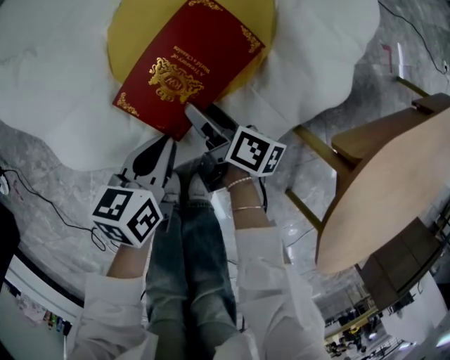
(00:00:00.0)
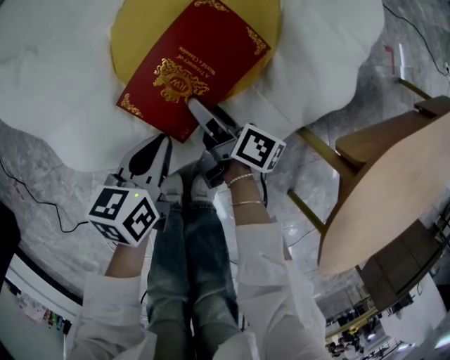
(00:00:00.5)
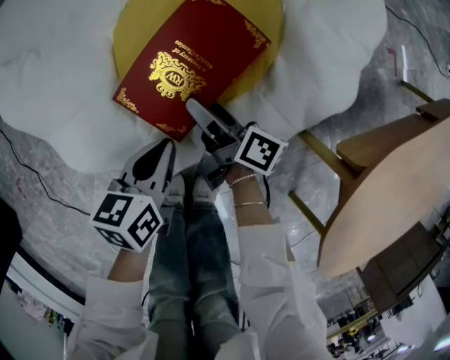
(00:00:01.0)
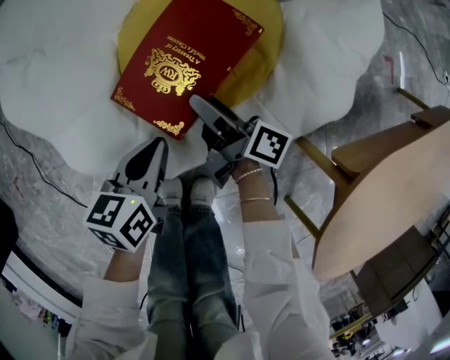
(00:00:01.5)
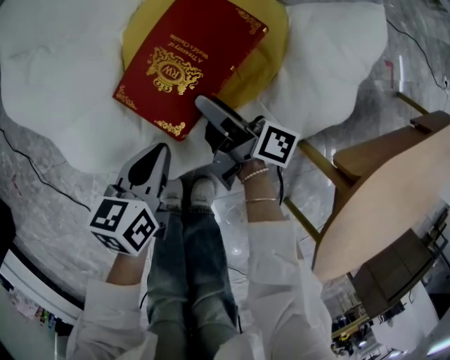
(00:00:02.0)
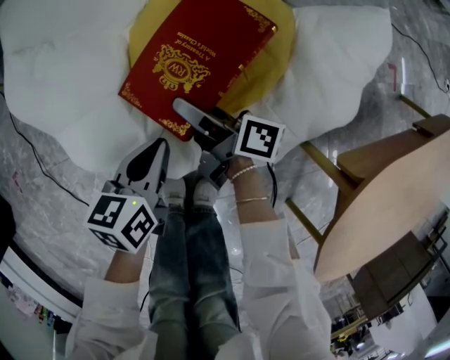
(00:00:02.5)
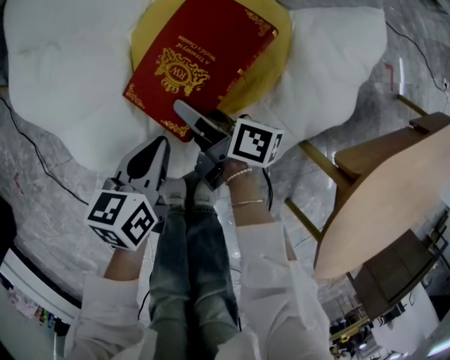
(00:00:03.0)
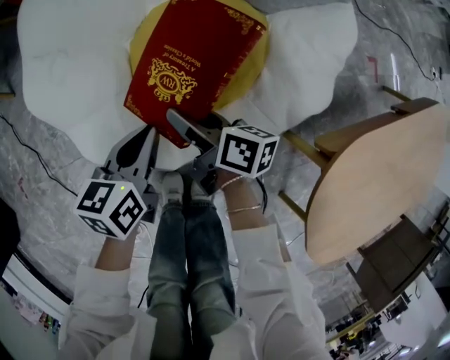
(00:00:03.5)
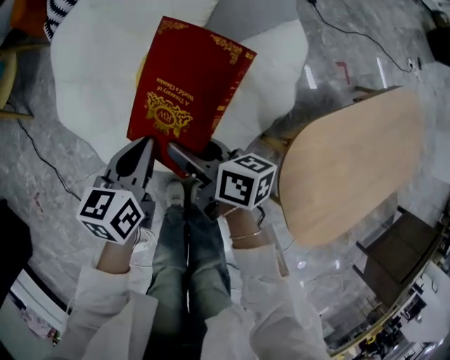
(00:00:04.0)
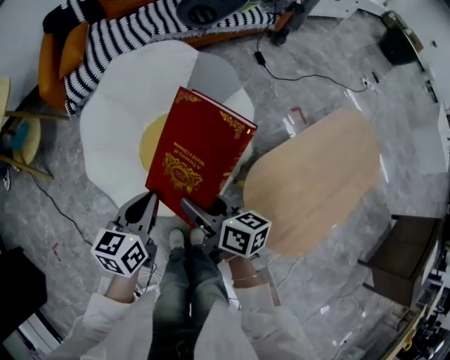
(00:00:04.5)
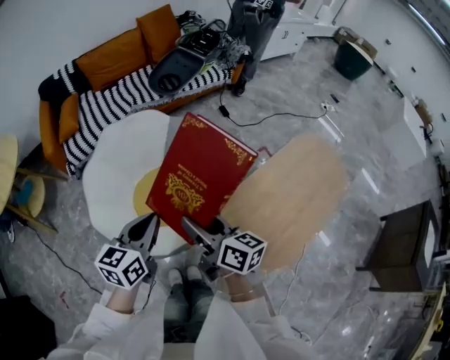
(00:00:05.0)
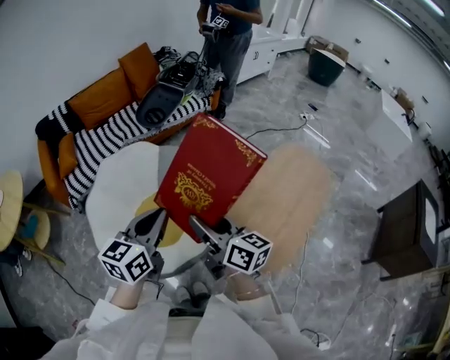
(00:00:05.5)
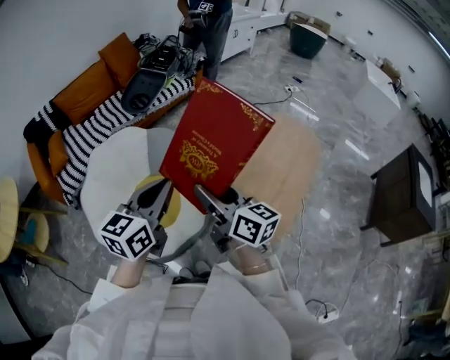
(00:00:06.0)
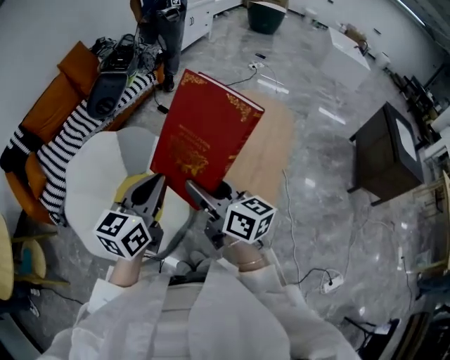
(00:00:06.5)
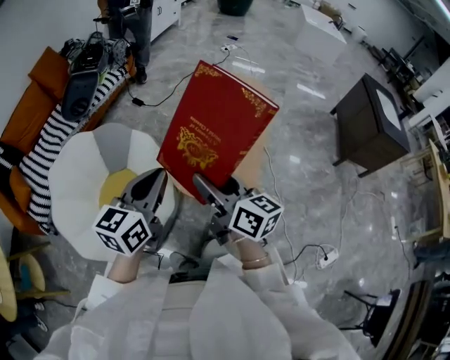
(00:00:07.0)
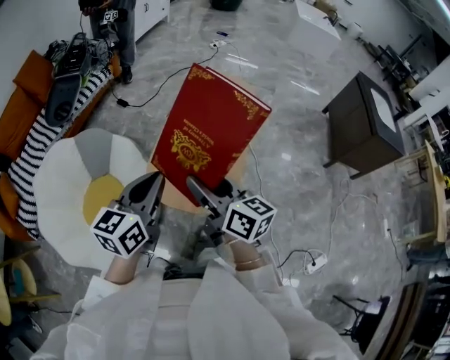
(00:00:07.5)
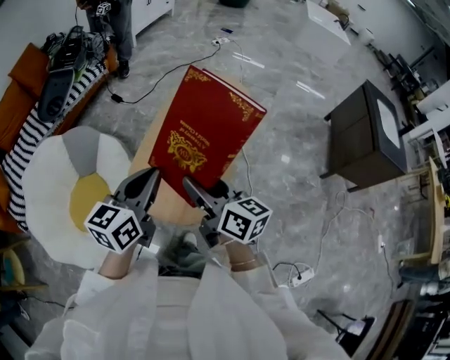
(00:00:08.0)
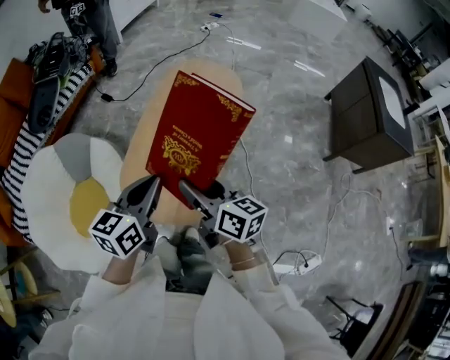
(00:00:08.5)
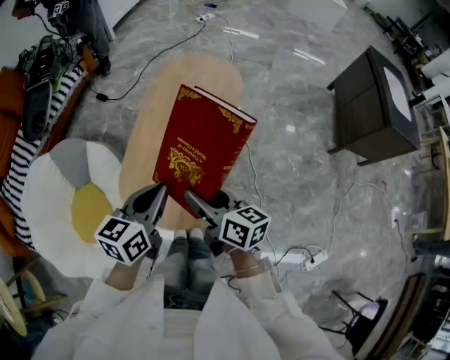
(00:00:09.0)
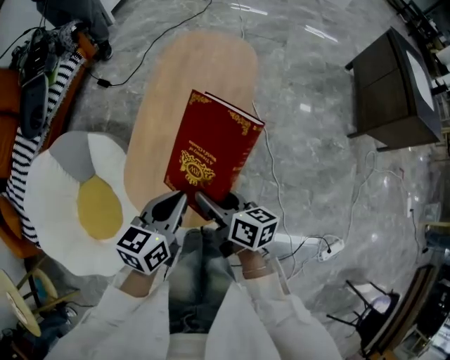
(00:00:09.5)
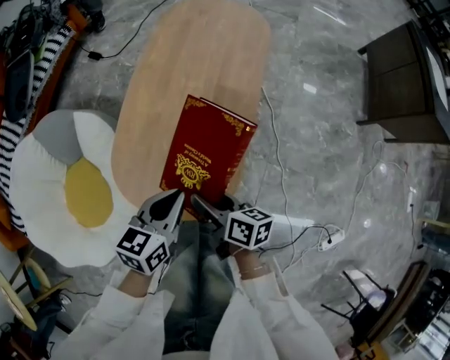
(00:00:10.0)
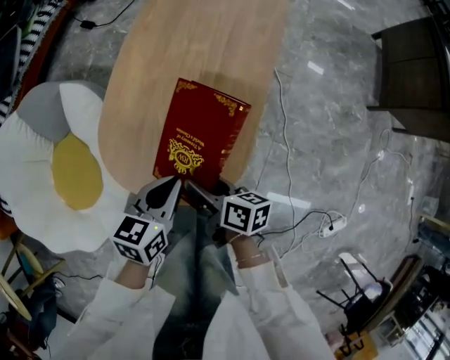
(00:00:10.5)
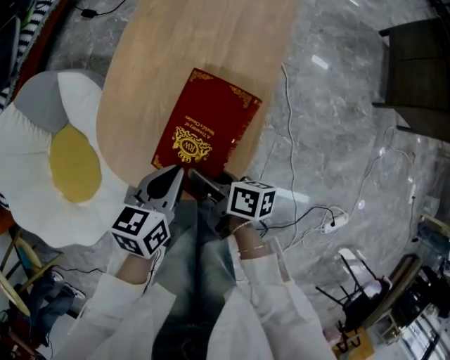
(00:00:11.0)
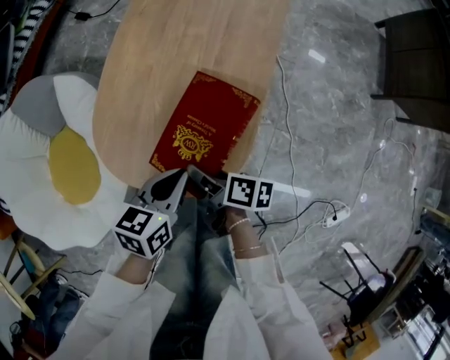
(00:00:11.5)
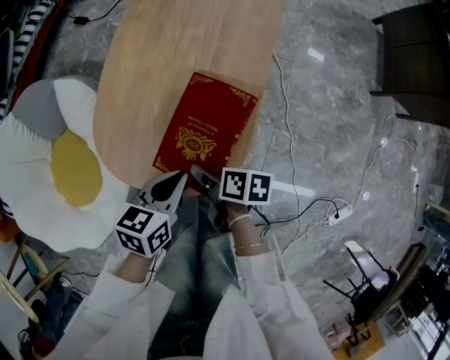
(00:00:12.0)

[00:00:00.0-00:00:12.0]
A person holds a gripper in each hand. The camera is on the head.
00:00:00.0 to 00:00:02.0: The right gripper is displaced upward and forward by roughly 10 cm, and changes its angle by about 20 degrees.
00:00:02.0 to 00:00:04.0: Both grippers travel together upward, about 20 cm. The right gripper turns by about 30 degrees.
00:00:04.0 to 00:00:06.0: Both grippers travel together upward, some 50 cm. The left gripper turns by roughly 50 degrees, while the right gripper turns by roughly 50 degrees.
00:00:06.0 to 00:00:08.0: Both grippers move to the right, roughly 35 cm.
00:00:08.0 to 00:00:10.0: Both grippers travel together downward, about 30 cm. The right gripper changes its angle by roughly 30 degrees, while the left gripper rotates some 30 degrees.
00:00:10.0 to 00:00:12.0: The grippers both shift downward by about 15 cm. The right gripper changes its angle by approximately 30 degrees.

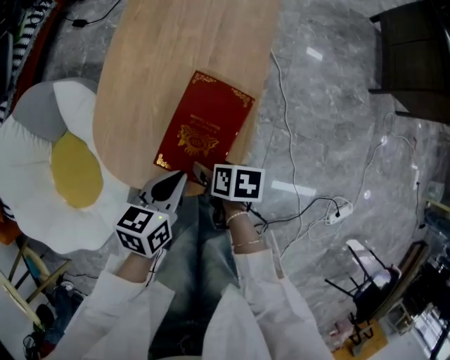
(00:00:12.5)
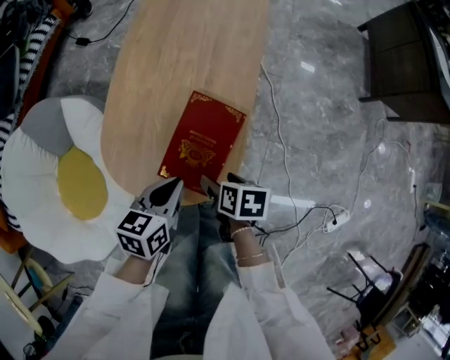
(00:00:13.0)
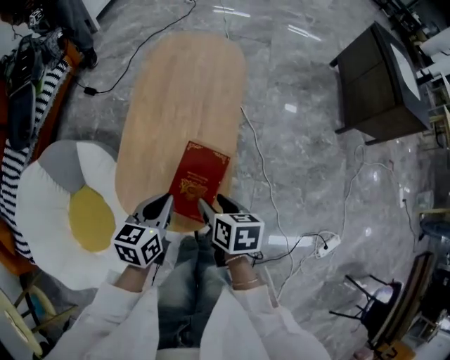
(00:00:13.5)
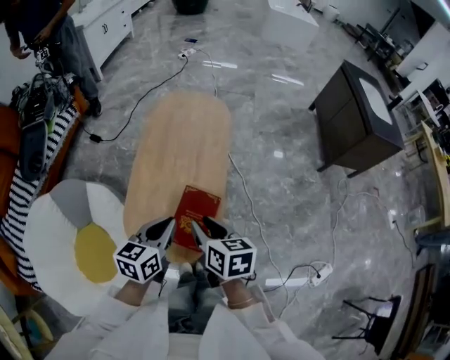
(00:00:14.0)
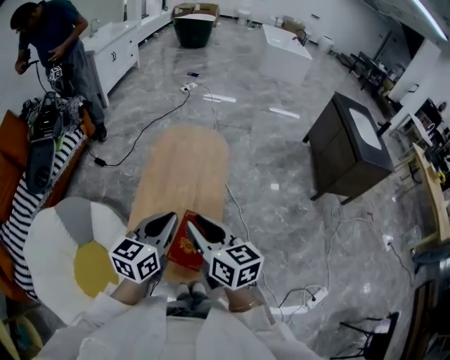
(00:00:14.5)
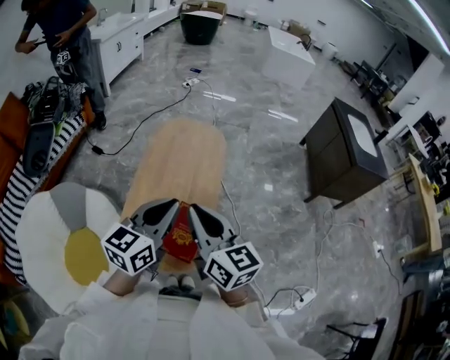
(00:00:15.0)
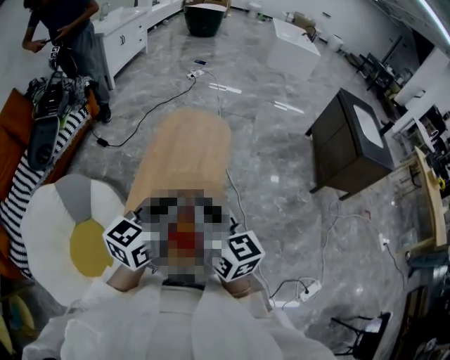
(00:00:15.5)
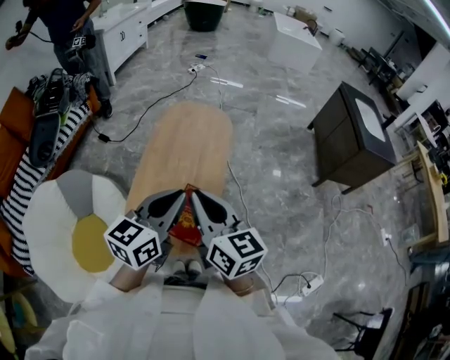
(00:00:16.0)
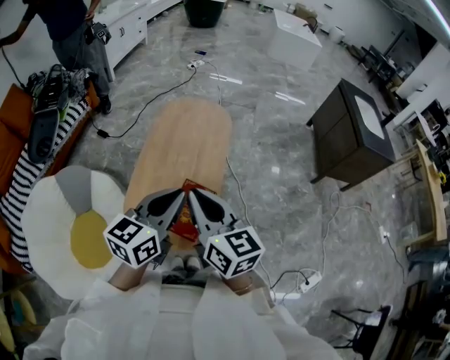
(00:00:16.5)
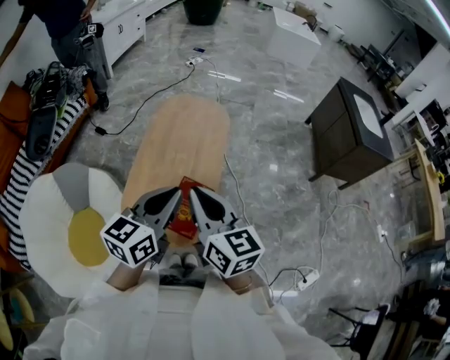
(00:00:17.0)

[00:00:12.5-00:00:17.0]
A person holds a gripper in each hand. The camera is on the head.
00:00:12.5 to 00:00:14.5: The two grippers go roughly 50 cm upward. The left gripper rotates approximately 30 degrees; the right gripper points its fingers about 40 degrees further upward, and closes up.
00:00:14.5 to 00:00:17.0: Both grippers move backward, some 5 cm.

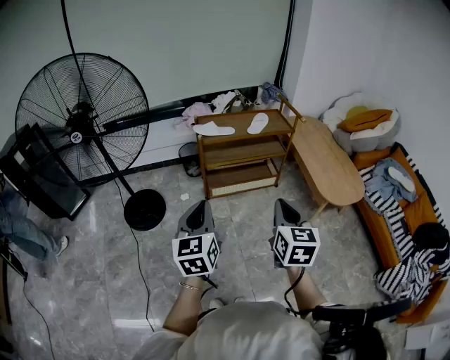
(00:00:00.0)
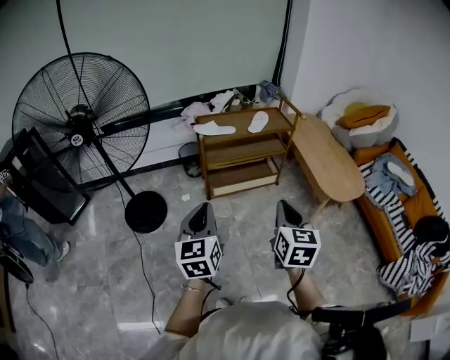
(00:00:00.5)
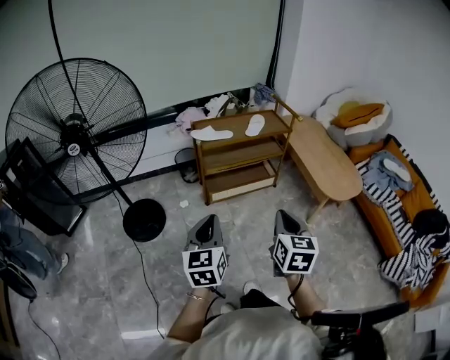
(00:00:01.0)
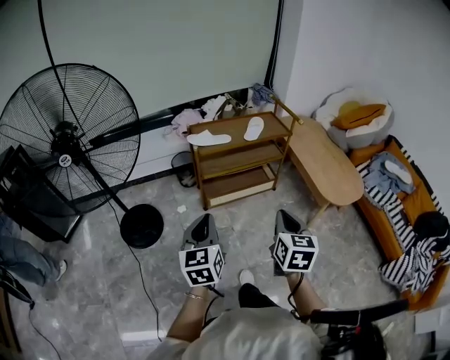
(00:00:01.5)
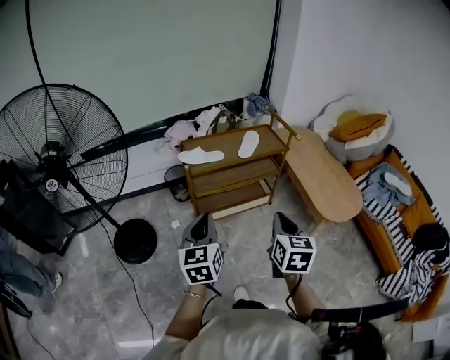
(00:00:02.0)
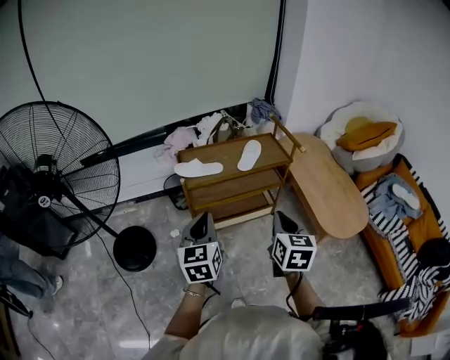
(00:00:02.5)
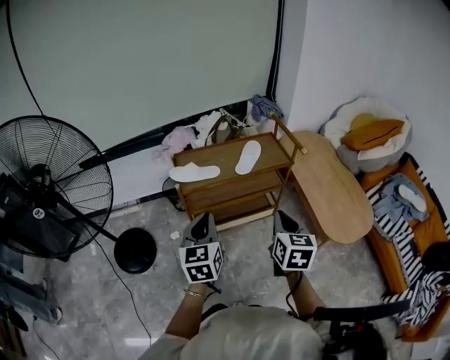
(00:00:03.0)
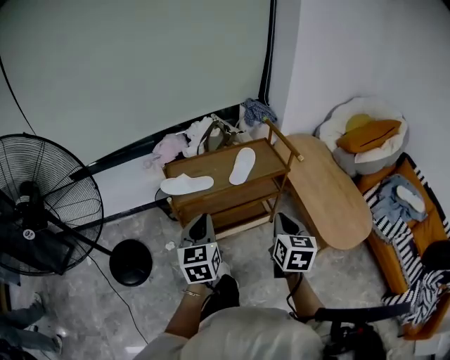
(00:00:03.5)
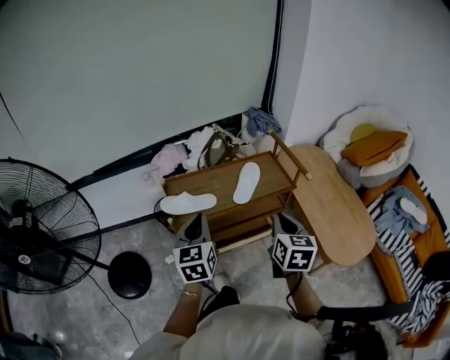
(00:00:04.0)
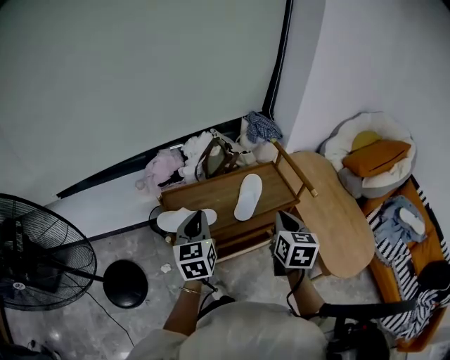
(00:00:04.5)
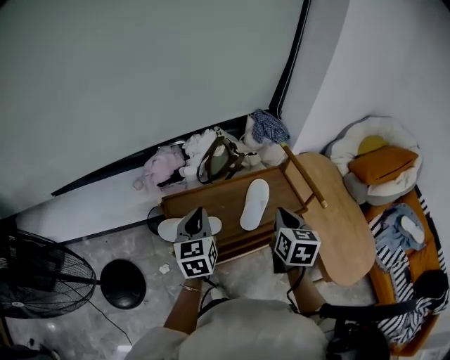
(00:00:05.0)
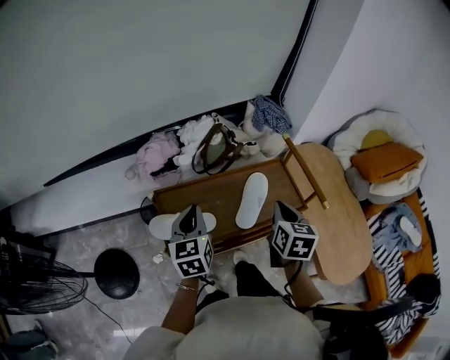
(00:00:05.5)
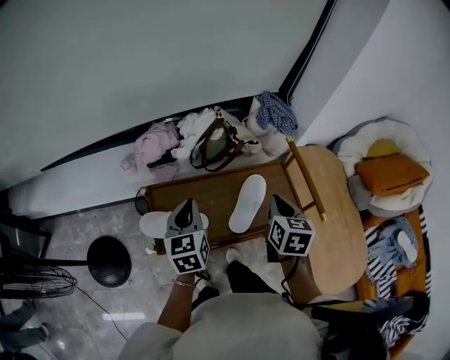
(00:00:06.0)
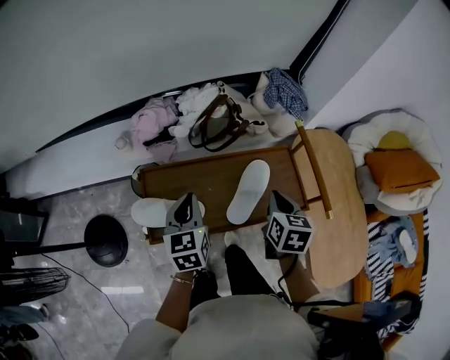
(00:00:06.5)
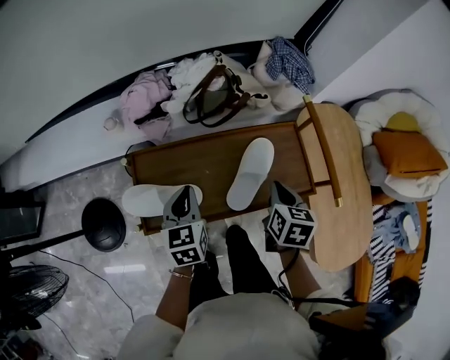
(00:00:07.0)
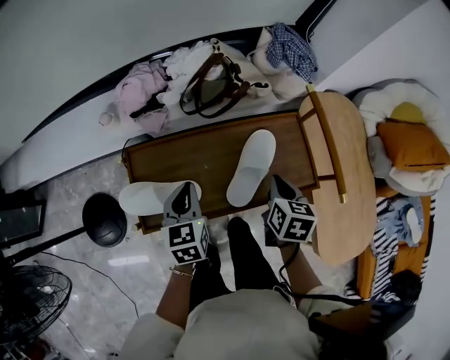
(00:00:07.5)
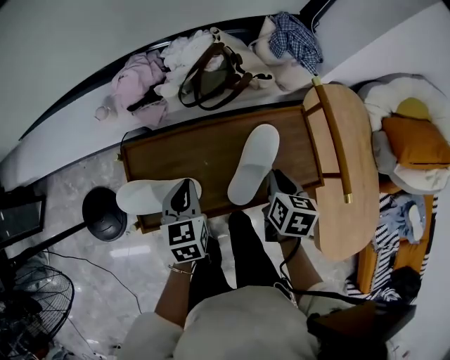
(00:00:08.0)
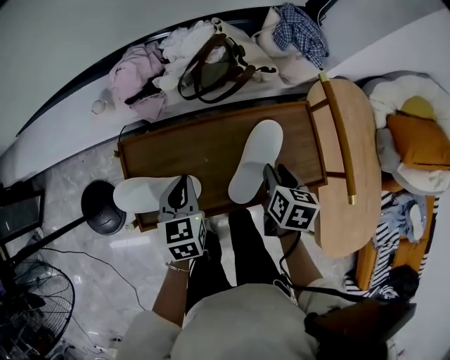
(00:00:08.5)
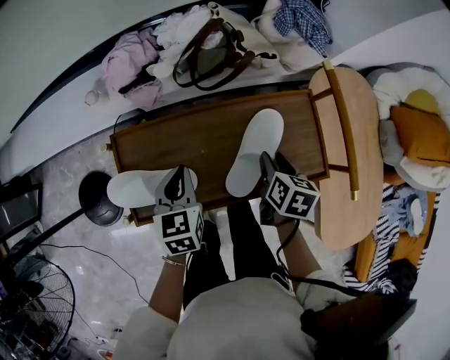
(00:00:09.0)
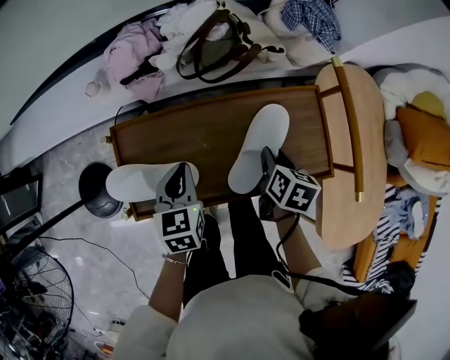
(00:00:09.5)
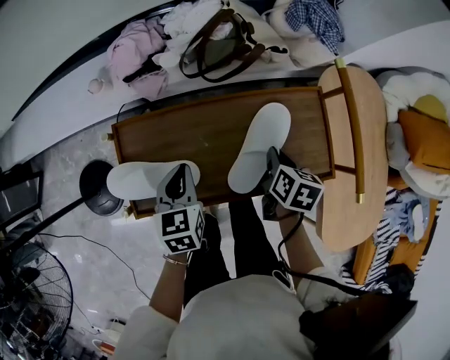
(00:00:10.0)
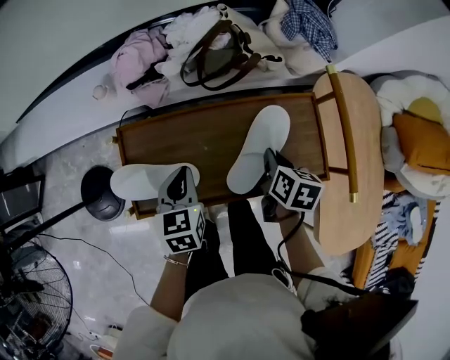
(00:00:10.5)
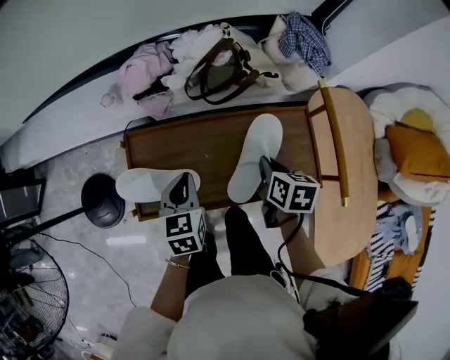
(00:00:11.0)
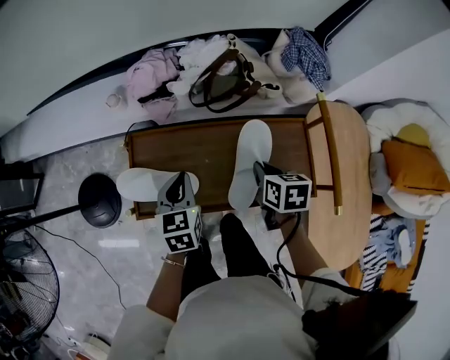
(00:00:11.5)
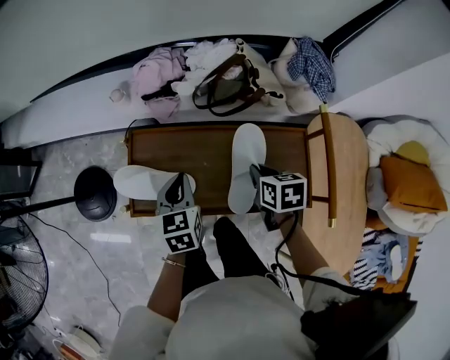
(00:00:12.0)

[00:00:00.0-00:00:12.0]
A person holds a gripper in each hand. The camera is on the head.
00:00:00.0 to 00:00:02.0: The two grippers go approximately 15 cm forward.
00:00:02.0 to 00:00:04.0: Both grippers travel together forward, some 30 cm.
00:00:04.0 to 00:00:06.0: Both grippers travel together forward, about 25 cm.
00:00:06.0 to 00:00:08.0: Both grippers move downward, approximately 15 cm.
00:00:08.0 to 00:00:10.0: The right gripper is displaced downward by some 5 cm, and opens, then closes again.
00:00:10.0 to 00:00:12.0: The right gripper is displaced upward by approximately 5 cm, and turns by some 30 degrees.
